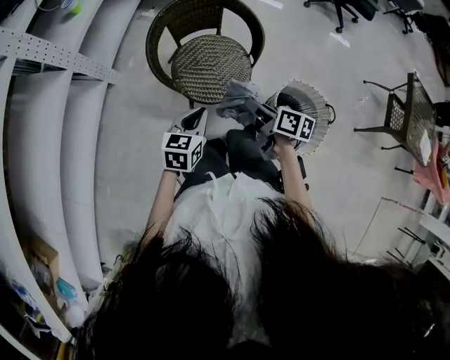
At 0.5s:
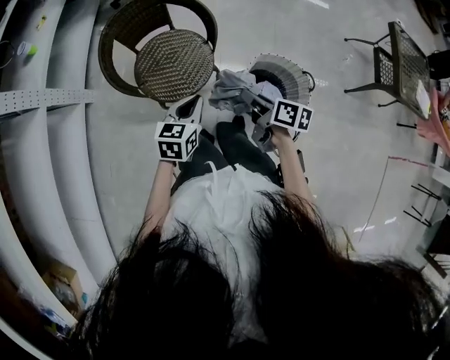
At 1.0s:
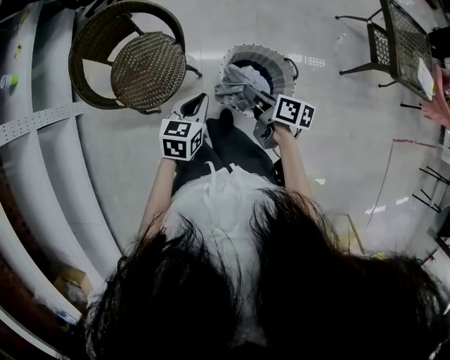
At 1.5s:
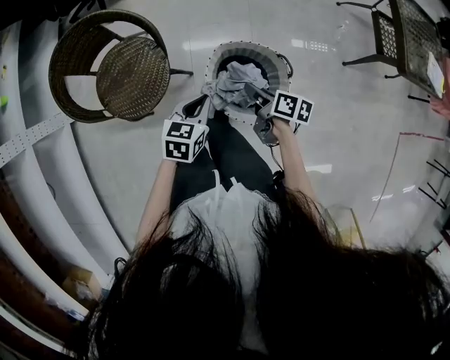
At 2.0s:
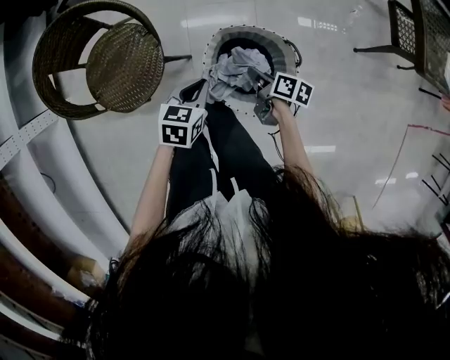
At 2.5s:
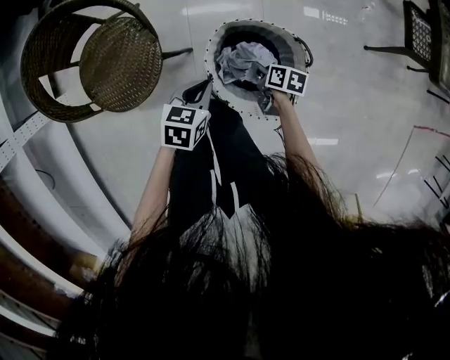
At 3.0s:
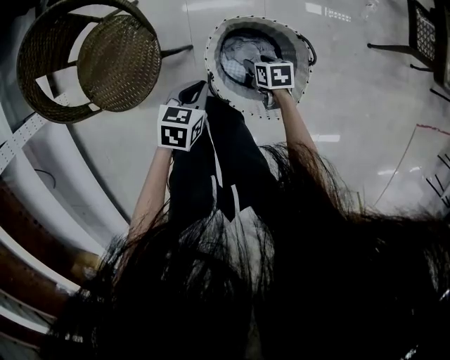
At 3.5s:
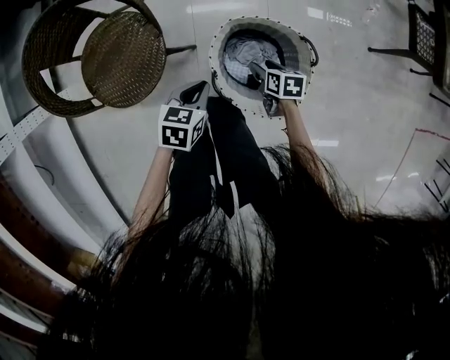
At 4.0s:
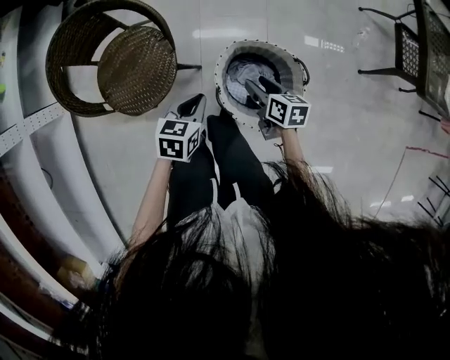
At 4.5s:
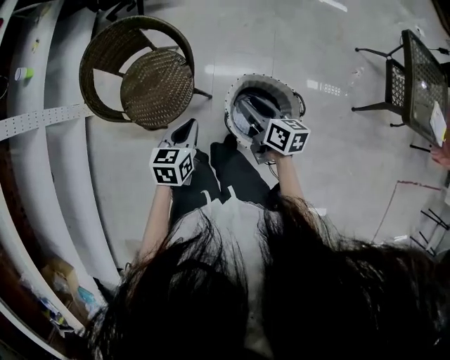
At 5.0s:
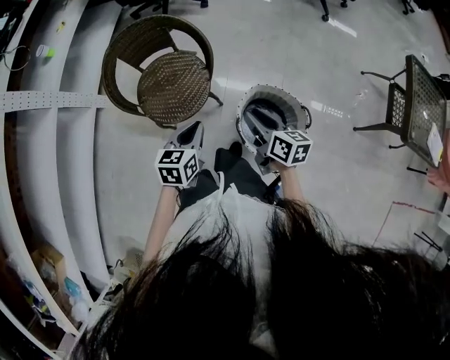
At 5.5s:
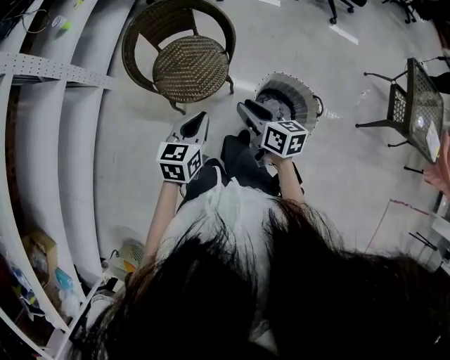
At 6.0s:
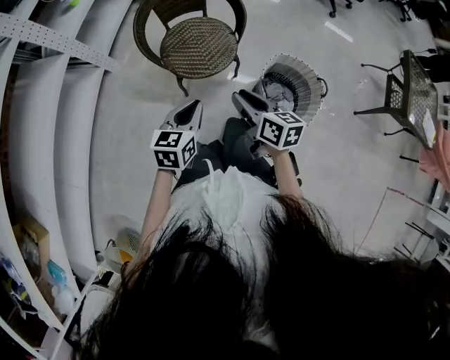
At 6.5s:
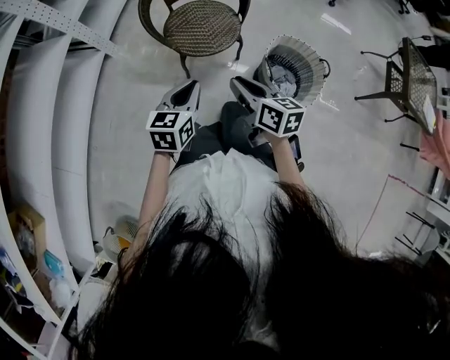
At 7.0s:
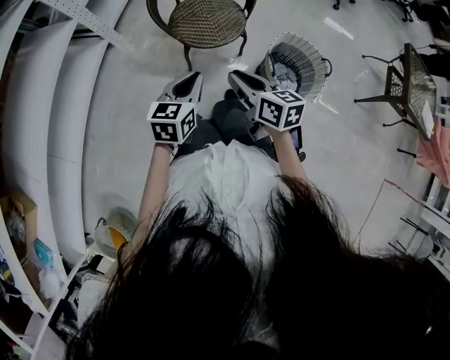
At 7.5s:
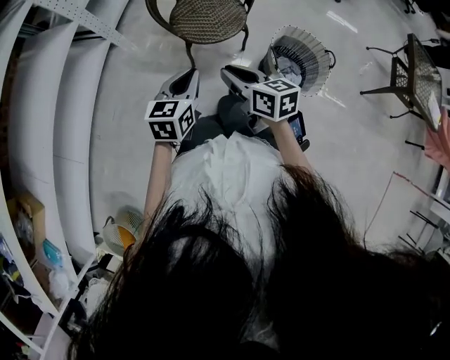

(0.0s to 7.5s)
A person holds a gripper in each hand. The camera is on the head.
0.0s - 2.0s: The right gripper shifts some 40 cm to the right and downward, and swivels roughly 30 degrees. Meanwhile the left gripper travels to the right by approximately 35 cm, and turns by roughly 30 degrees.
2.0s - 4.0s: The left gripper moves some 5 cm downward and comes back, while the right gripper moves some 15 cm downward and comes back, rotates some 30 degrees, and opens.
4.0s - 5.5s: The left gripper is displaced upward, to the left and backward by about 30 cm, and rotates some 30 degrees. Meanwhile the right gripper moves upward and to the left, some 30 cm, and changes its angle by some 20 degrees.
5.5s - 7.5s: Both grippers move to the left and backward, some 25 cm.

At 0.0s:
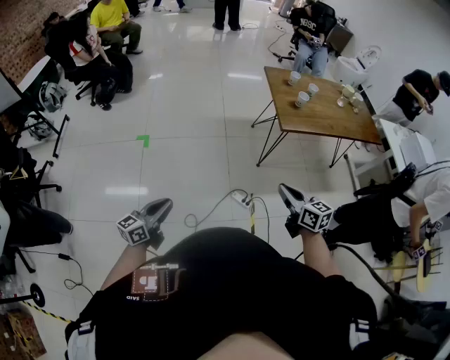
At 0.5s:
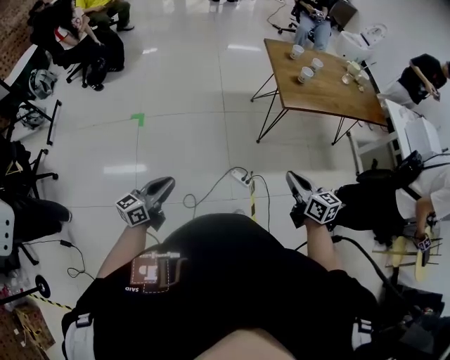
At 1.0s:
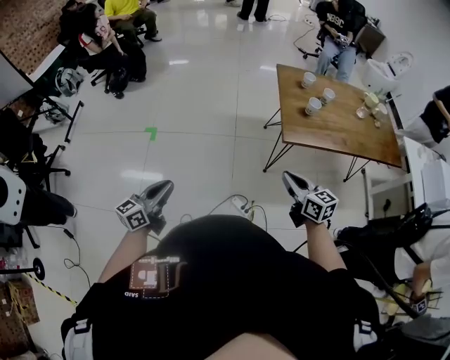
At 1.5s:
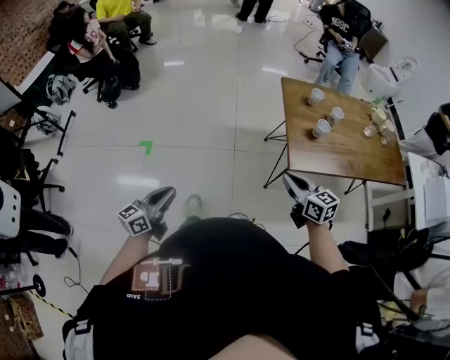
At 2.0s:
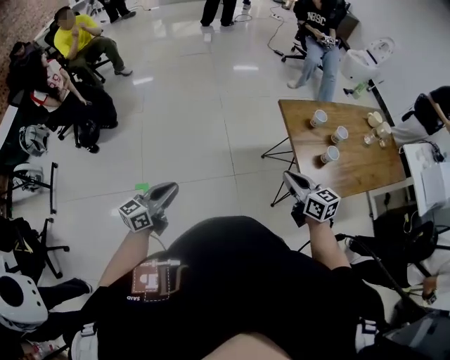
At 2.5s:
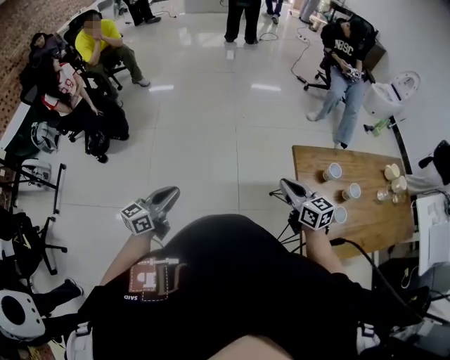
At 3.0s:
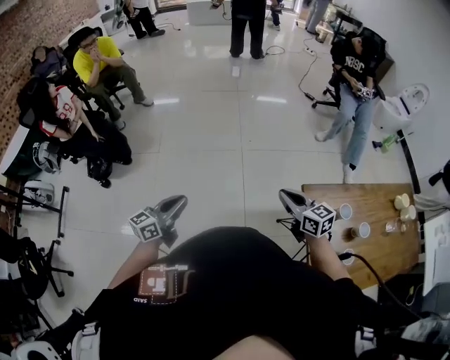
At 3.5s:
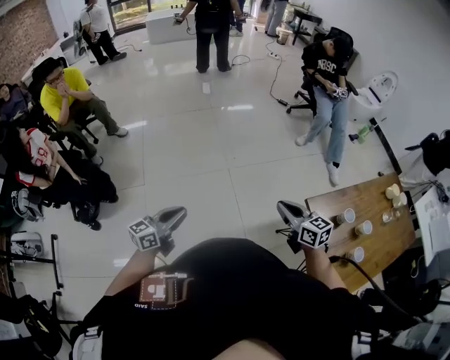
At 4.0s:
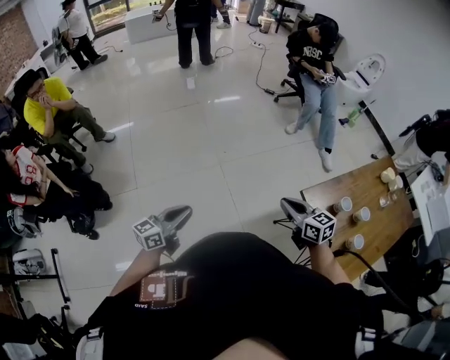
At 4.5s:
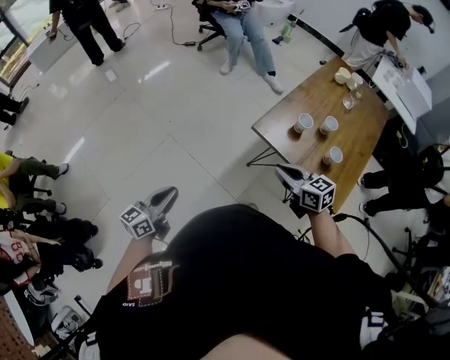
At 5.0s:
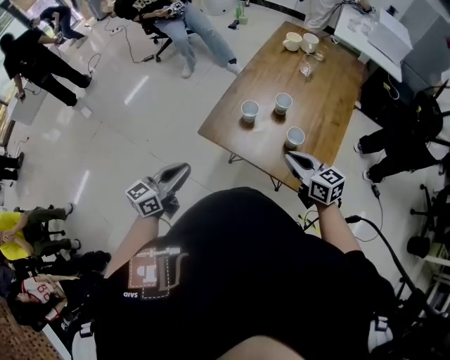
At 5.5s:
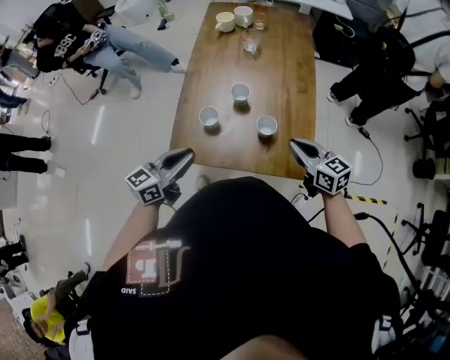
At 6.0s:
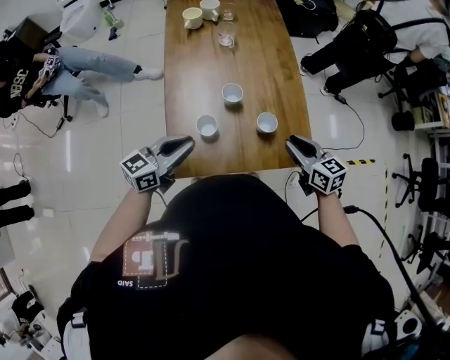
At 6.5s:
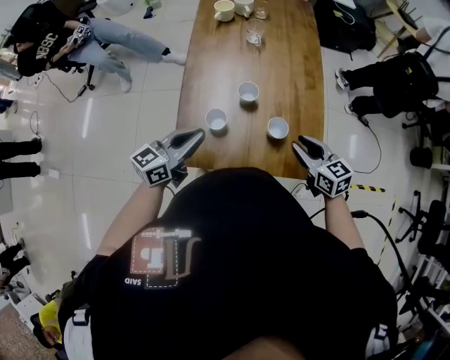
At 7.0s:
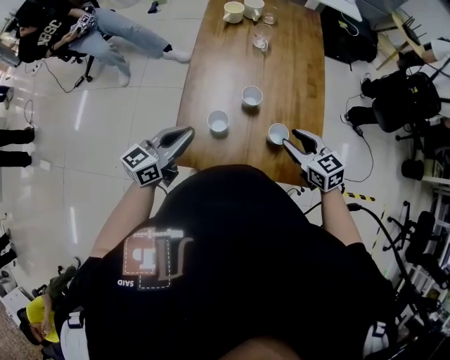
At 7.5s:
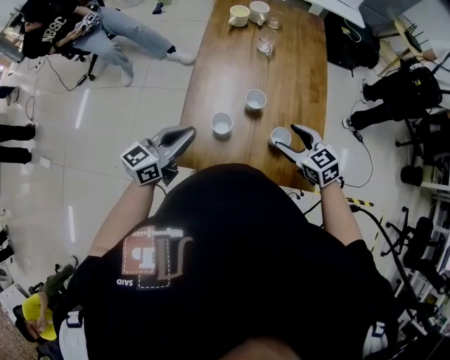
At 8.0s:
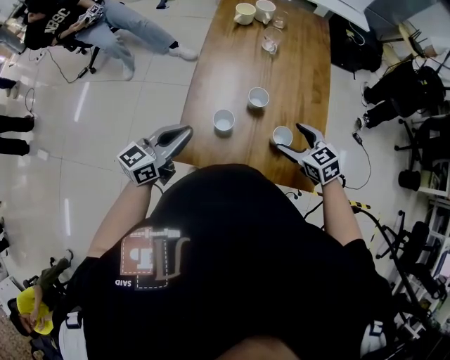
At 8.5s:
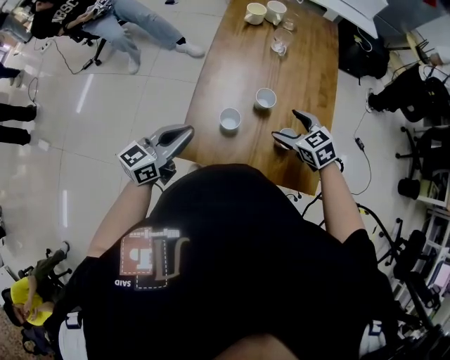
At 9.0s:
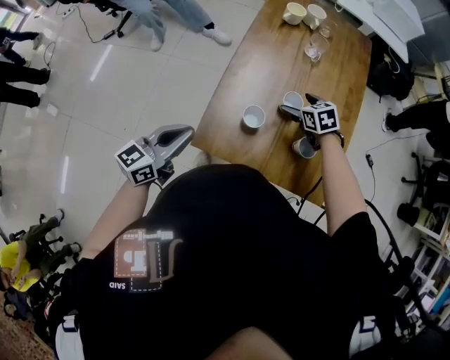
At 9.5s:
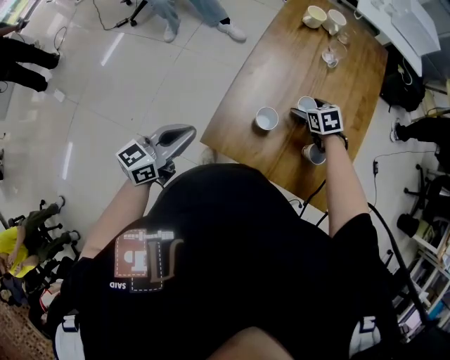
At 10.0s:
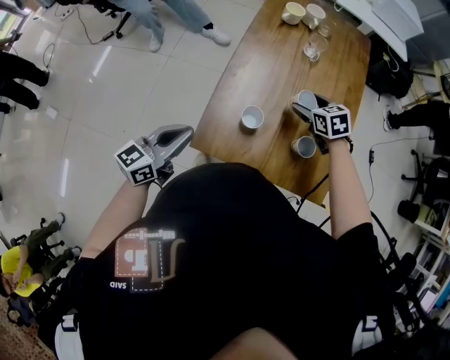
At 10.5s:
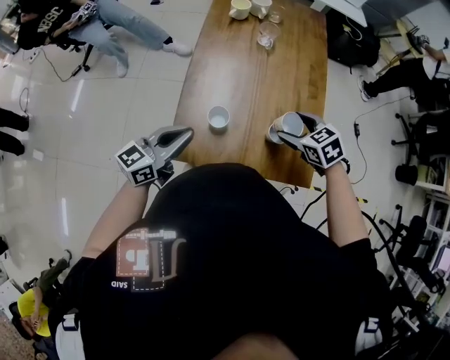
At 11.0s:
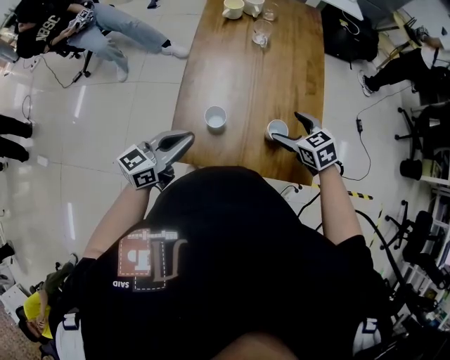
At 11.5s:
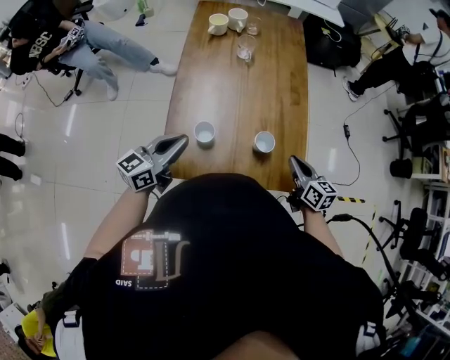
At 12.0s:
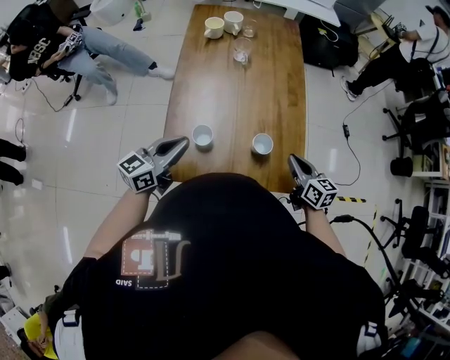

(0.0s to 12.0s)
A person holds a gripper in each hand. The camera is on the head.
0.0s - 2.0s: Both grippers are carried forward, roughly 60 cm.
2.0s - 4.0s: Both grippers are carried forward, some 40 cm.
4.0s - 6.0s: The two grippers travel together, about 60 cm. The left gripper changes its angle by about 80 degrees. The right gripper turns by some 80 degrees.
6.0s - 8.0s: The left gripper turns by about 20 degrees; the right gripper travels forward and to the left by some 10 cm, turns by roughly 40 degrees, and opens its fingers.
8.0s - 10.0s: The left gripper heads to the left, covering roughly 10 cm; the right gripper goes some 15 cm forward.
10.0s - 12.0s: The right gripper goes approximately 25 cm to the right and backward, rotates approximately 40 degrees, and closes up. Meanwhile the left gripper travels to the right and forward by some 15 cm.

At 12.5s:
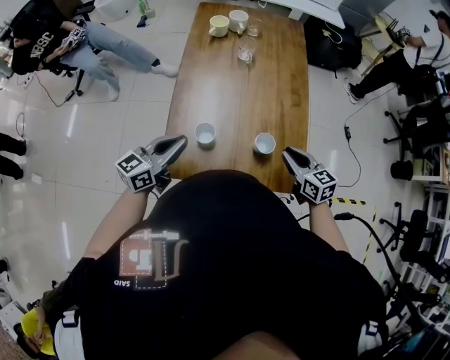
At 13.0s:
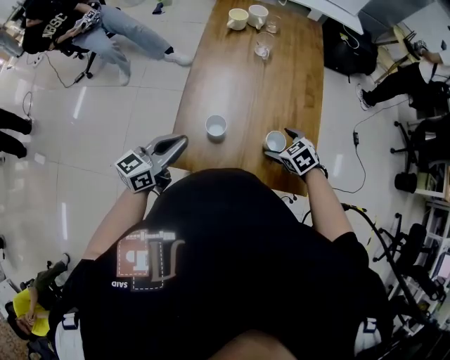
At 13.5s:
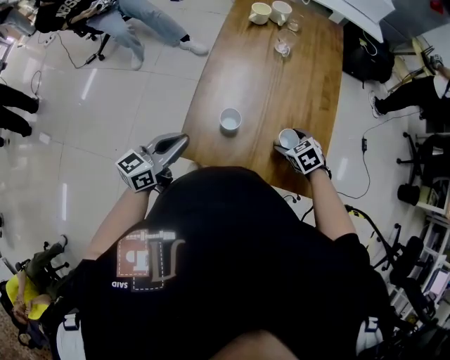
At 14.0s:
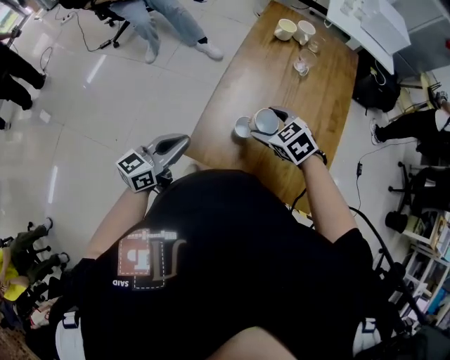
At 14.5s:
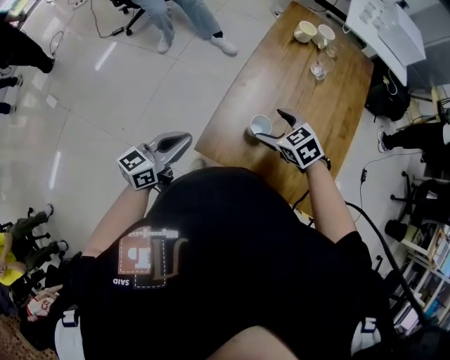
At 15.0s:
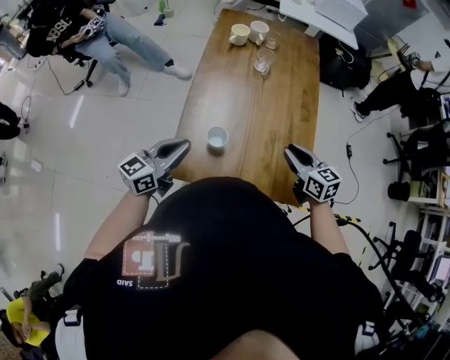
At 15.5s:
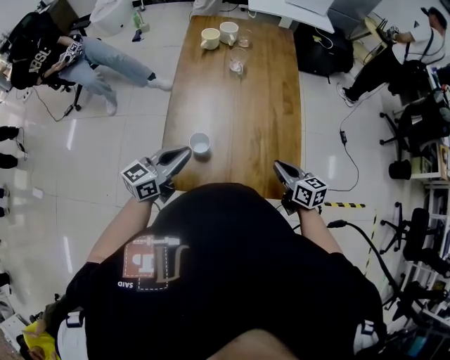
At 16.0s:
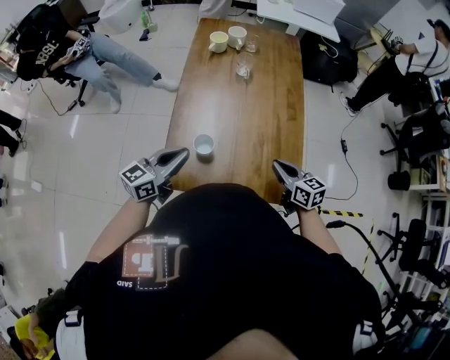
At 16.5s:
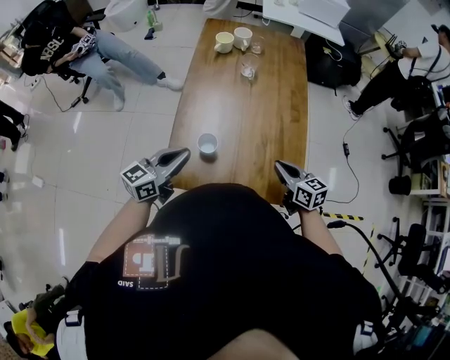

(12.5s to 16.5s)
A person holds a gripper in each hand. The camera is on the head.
12.5s - 14.5s: The right gripper heads to the left, covering approximately 25 cm, turns by some 50 degrees, and opens, while the left gripper heads to the left and backward, covering approximately 15 cm.
14.5s - 16.5s: The right gripper moves to the right, some 25 cm, changes its angle by roughly 50 degrees, and closes up, while the left gripper moves to the right and forward, about 15 cm.

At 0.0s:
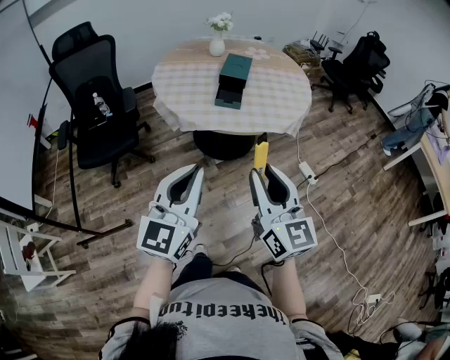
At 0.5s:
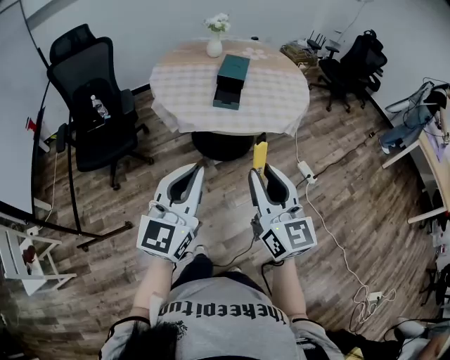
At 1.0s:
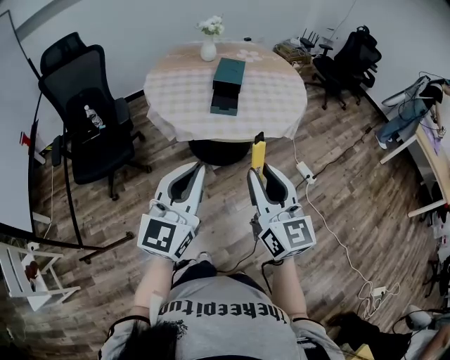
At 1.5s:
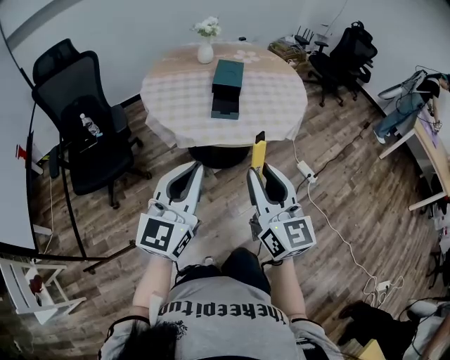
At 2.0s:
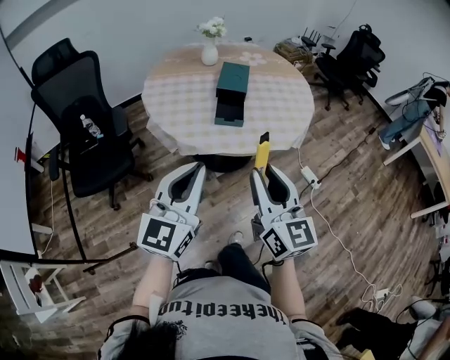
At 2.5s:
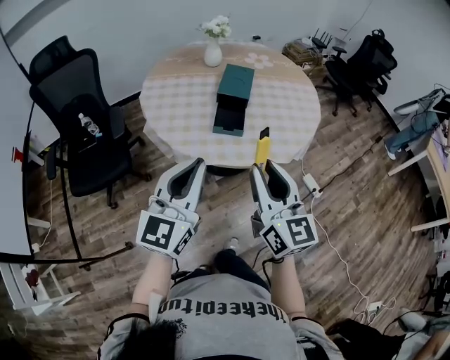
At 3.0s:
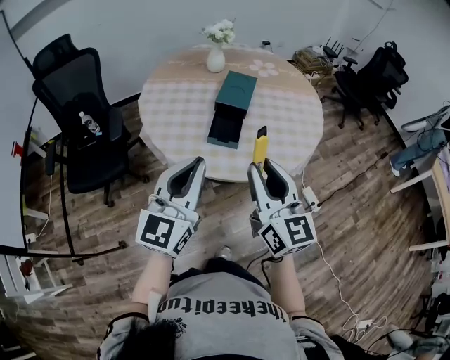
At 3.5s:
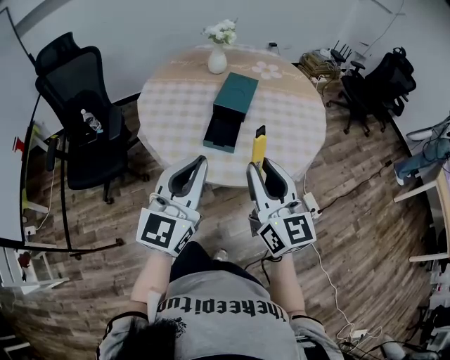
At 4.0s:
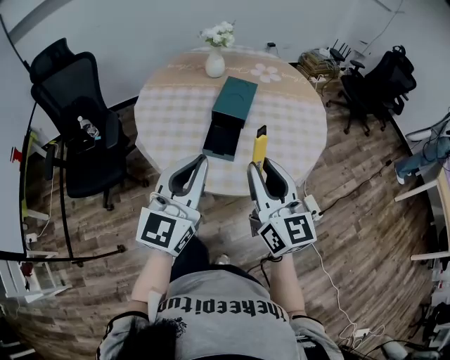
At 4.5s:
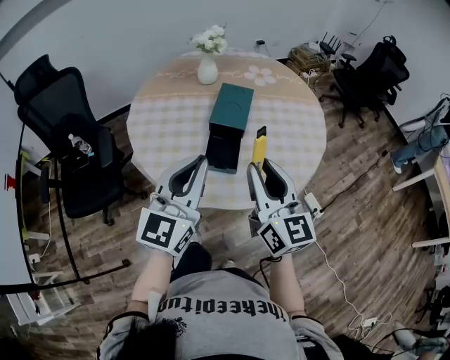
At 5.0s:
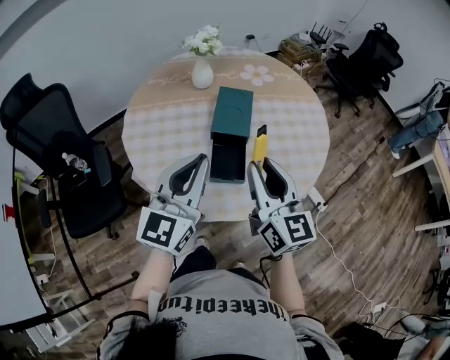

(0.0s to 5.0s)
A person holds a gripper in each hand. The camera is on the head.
0.0s - 2.5s: The two grippers go roughly 20 cm forward.
2.5s - 5.0s: The grippers both shift forward by some 25 cm.
